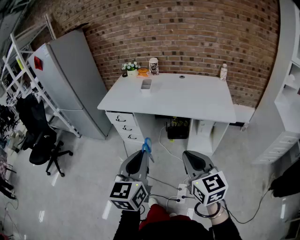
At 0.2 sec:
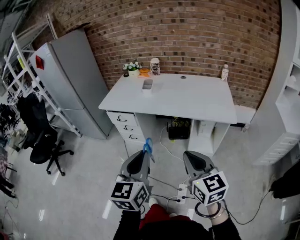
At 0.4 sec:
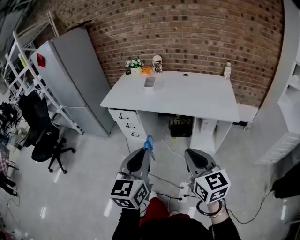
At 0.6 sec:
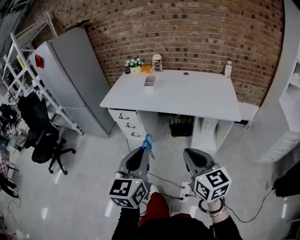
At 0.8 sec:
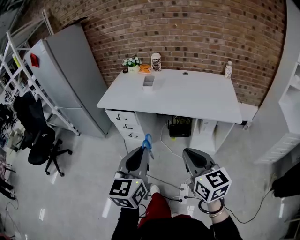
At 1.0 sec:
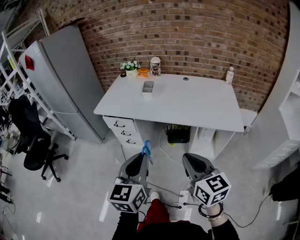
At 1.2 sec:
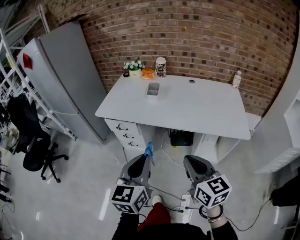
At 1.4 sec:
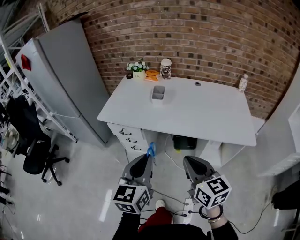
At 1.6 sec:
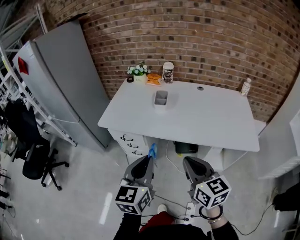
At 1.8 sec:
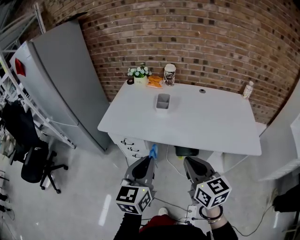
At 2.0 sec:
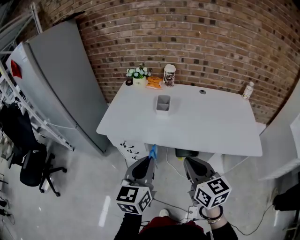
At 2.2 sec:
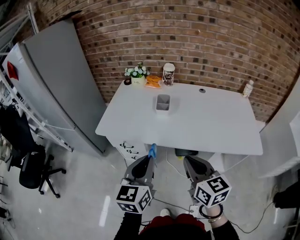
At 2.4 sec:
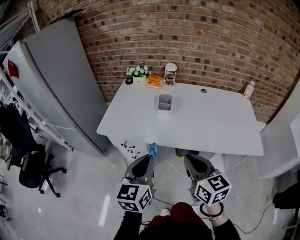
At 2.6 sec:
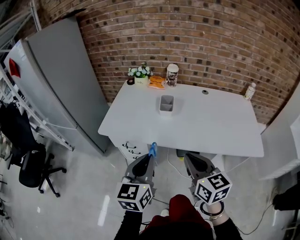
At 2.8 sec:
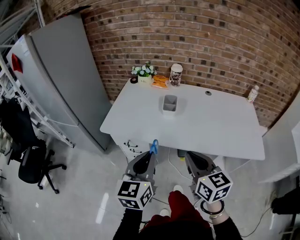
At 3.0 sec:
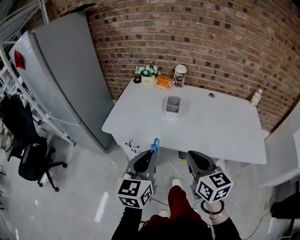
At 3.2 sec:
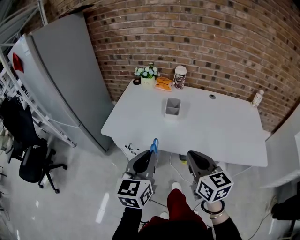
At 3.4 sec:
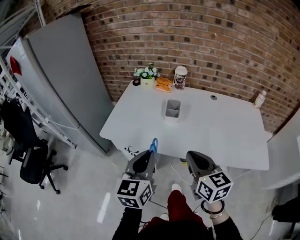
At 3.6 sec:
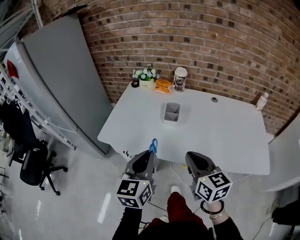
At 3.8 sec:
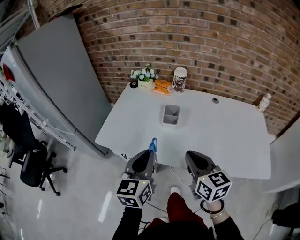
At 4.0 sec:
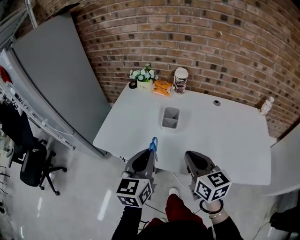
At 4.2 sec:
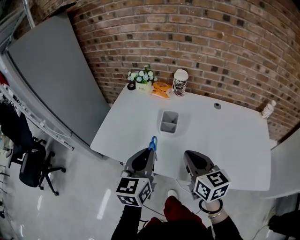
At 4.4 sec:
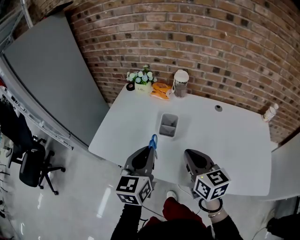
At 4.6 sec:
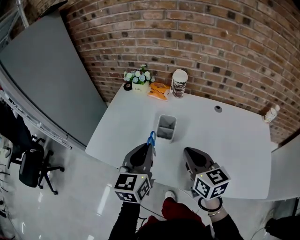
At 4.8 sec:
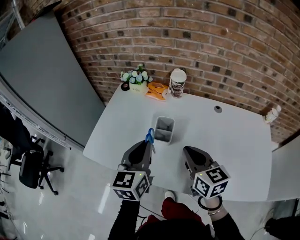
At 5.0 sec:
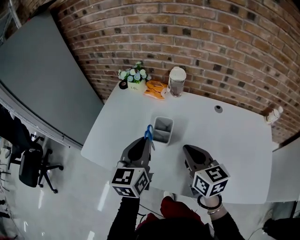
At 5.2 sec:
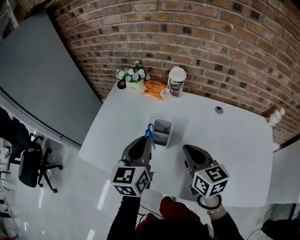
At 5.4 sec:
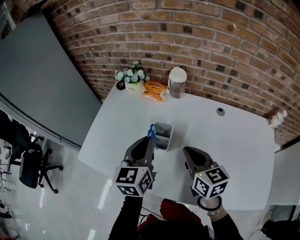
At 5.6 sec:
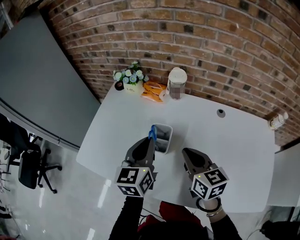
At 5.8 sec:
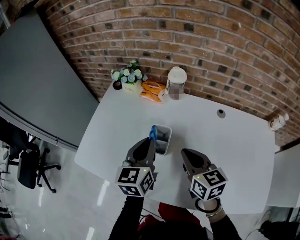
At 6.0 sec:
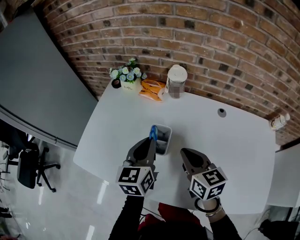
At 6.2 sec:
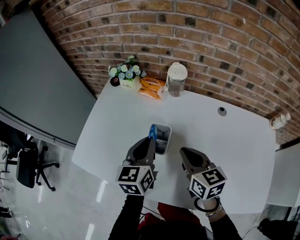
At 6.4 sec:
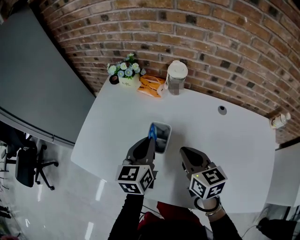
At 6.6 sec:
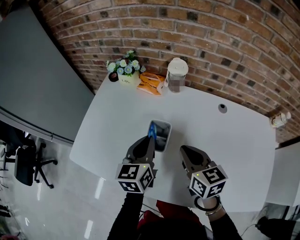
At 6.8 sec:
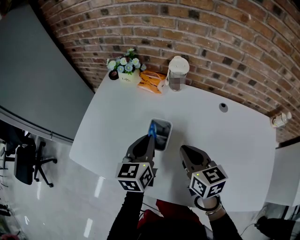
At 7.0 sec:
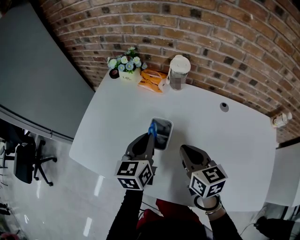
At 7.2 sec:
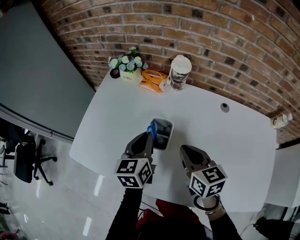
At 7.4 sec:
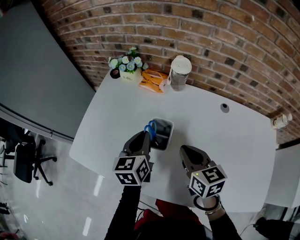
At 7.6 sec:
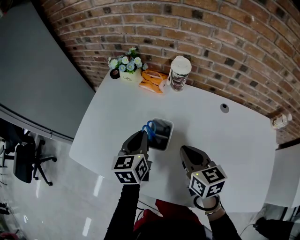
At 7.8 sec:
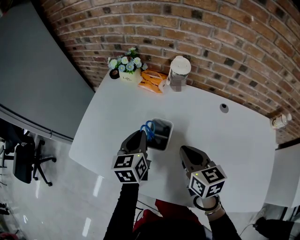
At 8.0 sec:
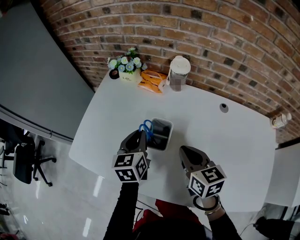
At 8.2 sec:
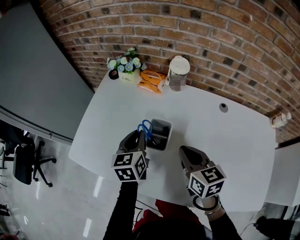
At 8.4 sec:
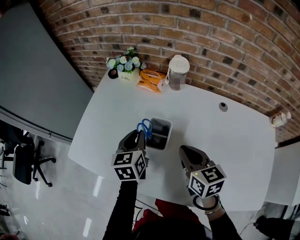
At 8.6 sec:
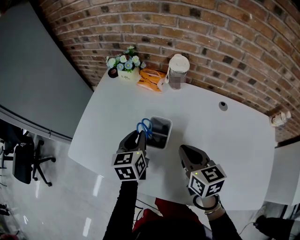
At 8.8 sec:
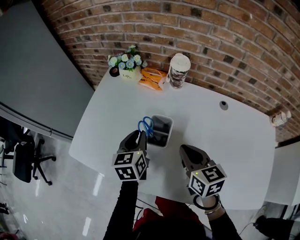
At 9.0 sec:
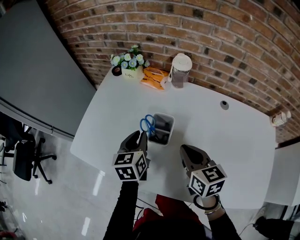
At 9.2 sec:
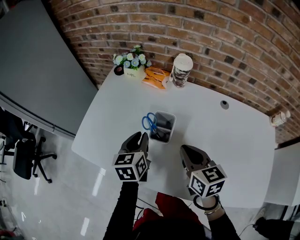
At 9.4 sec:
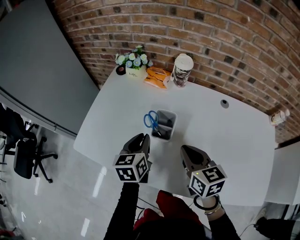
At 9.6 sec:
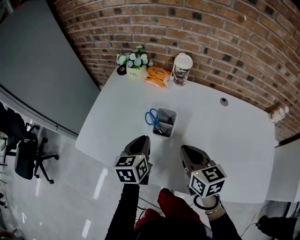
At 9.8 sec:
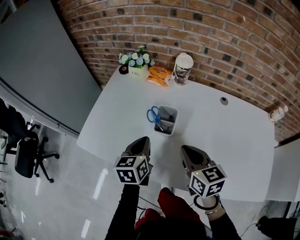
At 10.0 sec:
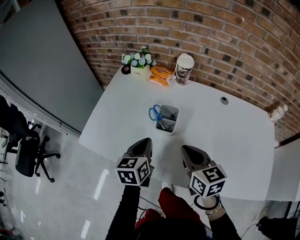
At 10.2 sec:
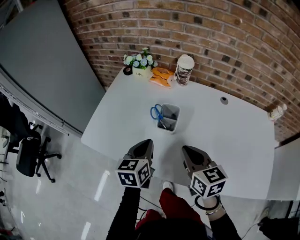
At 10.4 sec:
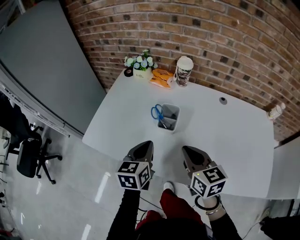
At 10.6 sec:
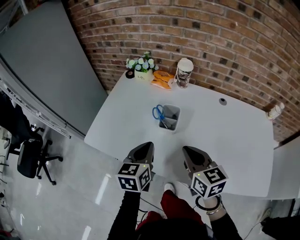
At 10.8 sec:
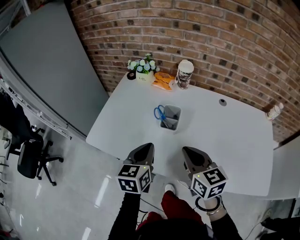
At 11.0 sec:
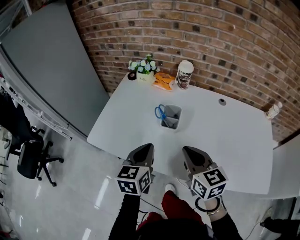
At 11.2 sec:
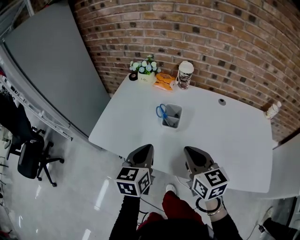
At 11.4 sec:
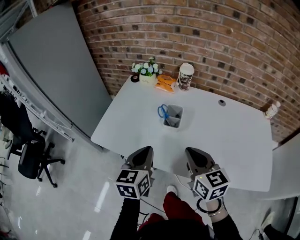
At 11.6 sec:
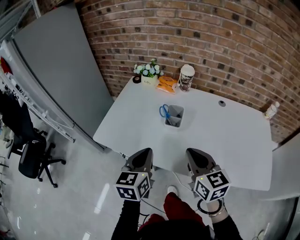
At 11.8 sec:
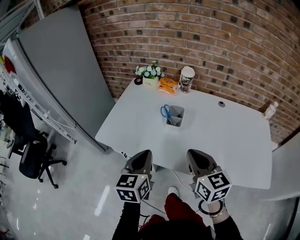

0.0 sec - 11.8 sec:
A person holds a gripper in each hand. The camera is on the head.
0.0 sec - 1.4 sec: The grippers both shift forward by some 20 cm.
1.4 sec - 3.0 sec: Both grippers move forward and to the left, some 15 cm.
3.0 sec - 4.4 sec: Both grippers travel together forward, about 20 cm.
4.4 sec - 6.0 sec: The left gripper heads forward, to the right and downward, covering roughly 20 cm, while the right gripper is displaced forward and downward by some 15 cm.
6.0 sec - 7.4 sec: The left gripper is displaced downward by approximately 5 cm.
7.4 sec - 8.8 sec: The grippers move only a little.
8.8 sec - 10.4 sec: Both grippers move backward, about 10 cm.
10.4 sec - 11.8 sec: The left gripper goes about 15 cm backward, upward and to the left. The right gripper travels backward and upward by about 10 cm.

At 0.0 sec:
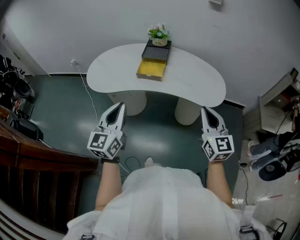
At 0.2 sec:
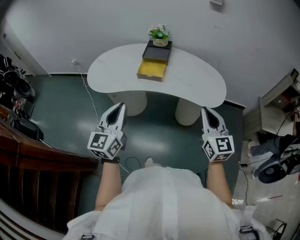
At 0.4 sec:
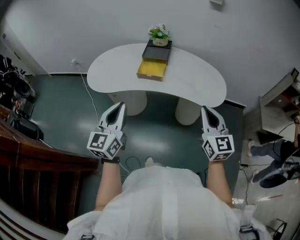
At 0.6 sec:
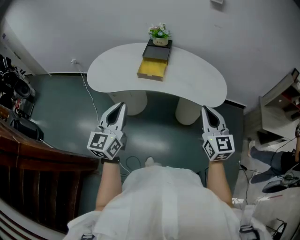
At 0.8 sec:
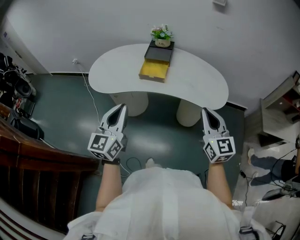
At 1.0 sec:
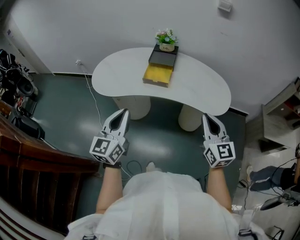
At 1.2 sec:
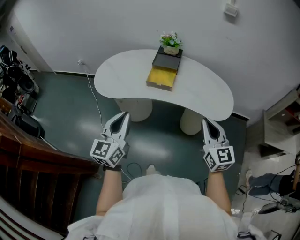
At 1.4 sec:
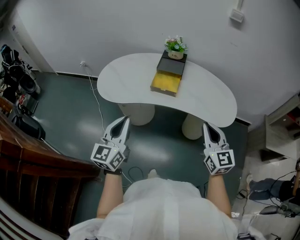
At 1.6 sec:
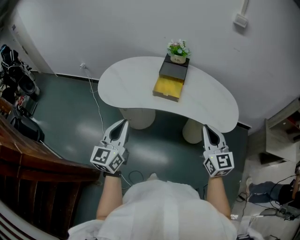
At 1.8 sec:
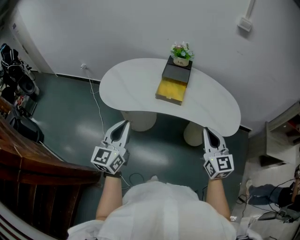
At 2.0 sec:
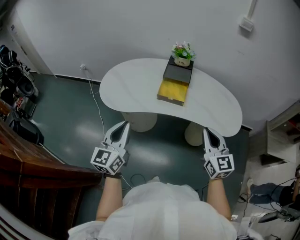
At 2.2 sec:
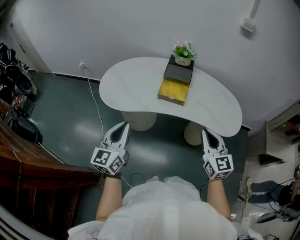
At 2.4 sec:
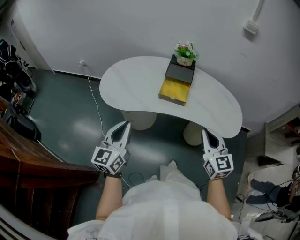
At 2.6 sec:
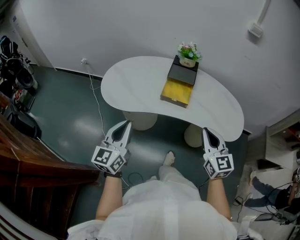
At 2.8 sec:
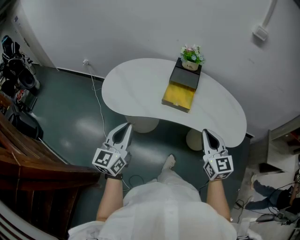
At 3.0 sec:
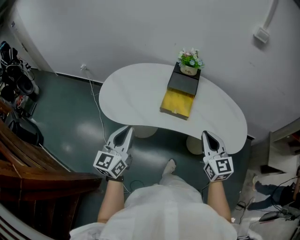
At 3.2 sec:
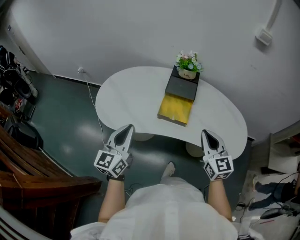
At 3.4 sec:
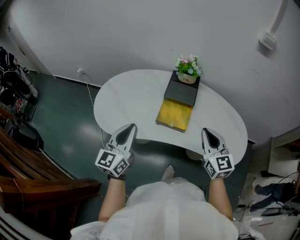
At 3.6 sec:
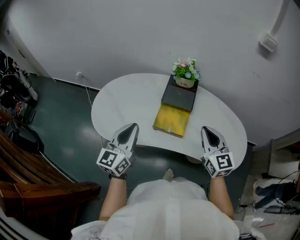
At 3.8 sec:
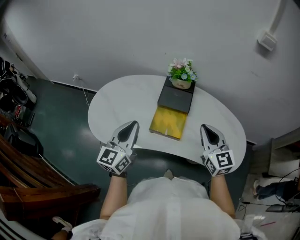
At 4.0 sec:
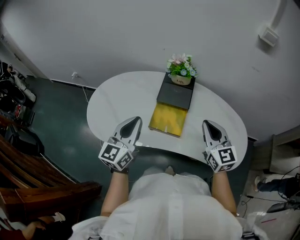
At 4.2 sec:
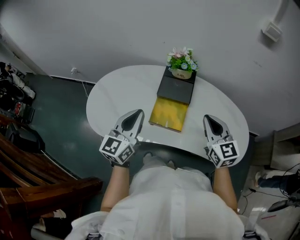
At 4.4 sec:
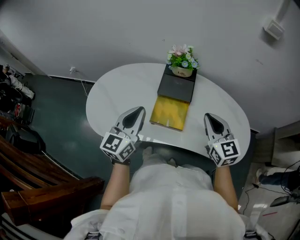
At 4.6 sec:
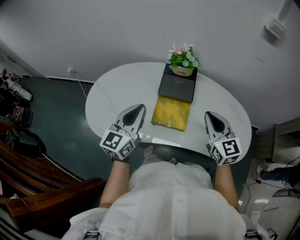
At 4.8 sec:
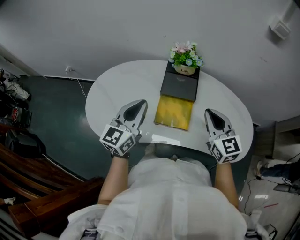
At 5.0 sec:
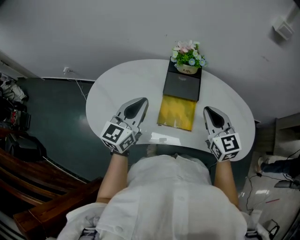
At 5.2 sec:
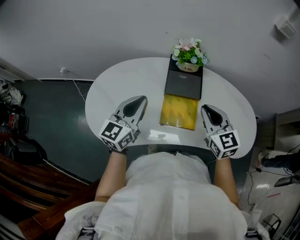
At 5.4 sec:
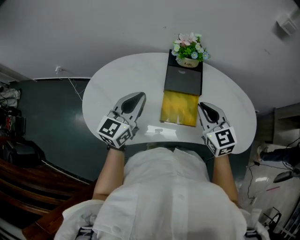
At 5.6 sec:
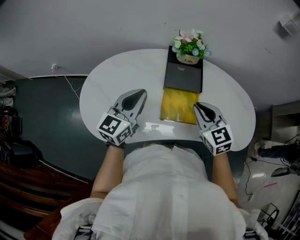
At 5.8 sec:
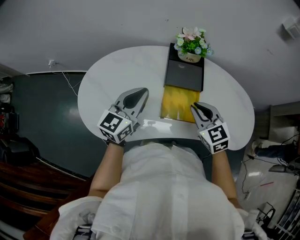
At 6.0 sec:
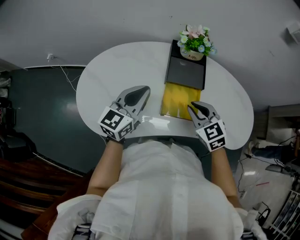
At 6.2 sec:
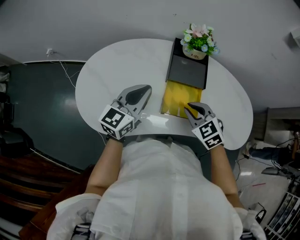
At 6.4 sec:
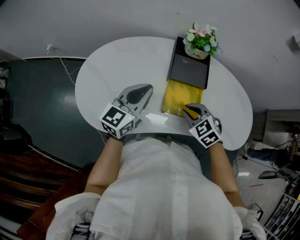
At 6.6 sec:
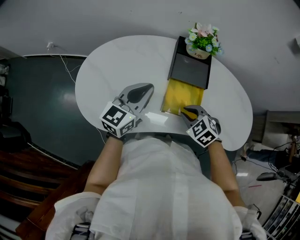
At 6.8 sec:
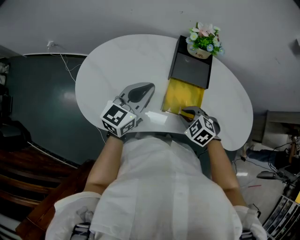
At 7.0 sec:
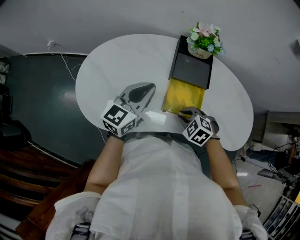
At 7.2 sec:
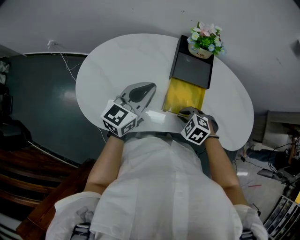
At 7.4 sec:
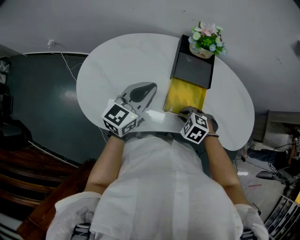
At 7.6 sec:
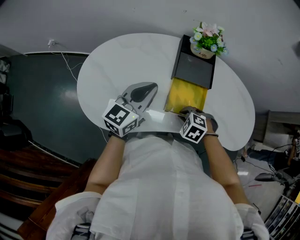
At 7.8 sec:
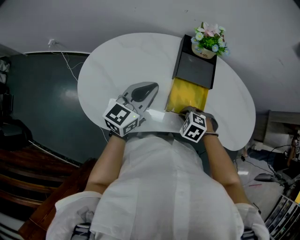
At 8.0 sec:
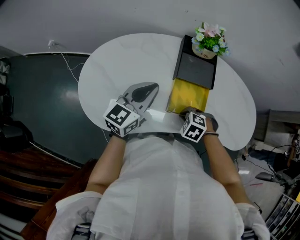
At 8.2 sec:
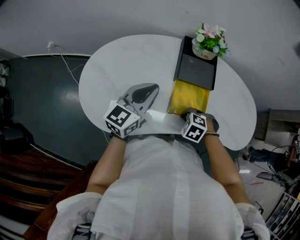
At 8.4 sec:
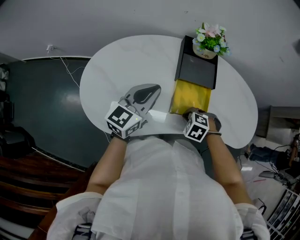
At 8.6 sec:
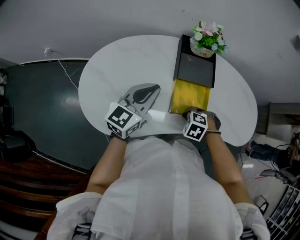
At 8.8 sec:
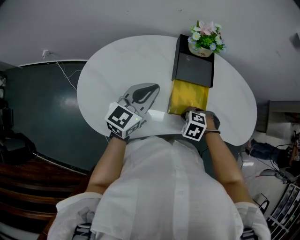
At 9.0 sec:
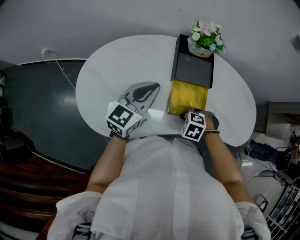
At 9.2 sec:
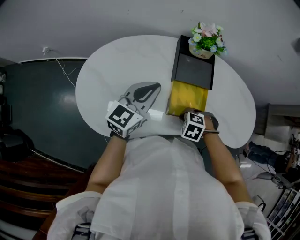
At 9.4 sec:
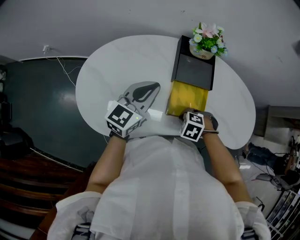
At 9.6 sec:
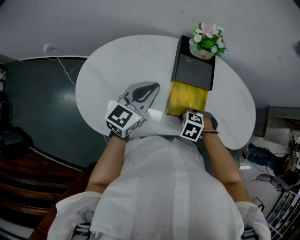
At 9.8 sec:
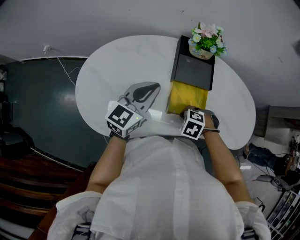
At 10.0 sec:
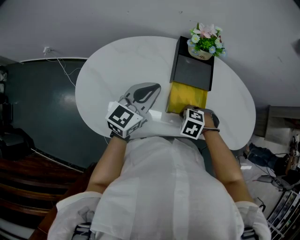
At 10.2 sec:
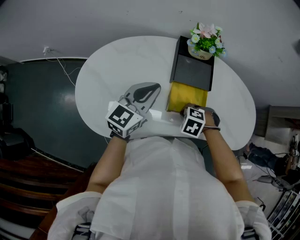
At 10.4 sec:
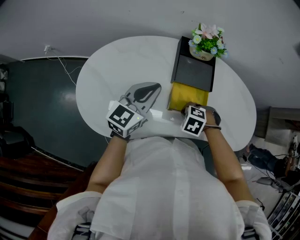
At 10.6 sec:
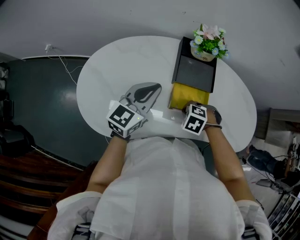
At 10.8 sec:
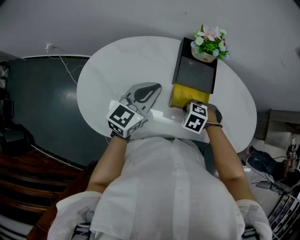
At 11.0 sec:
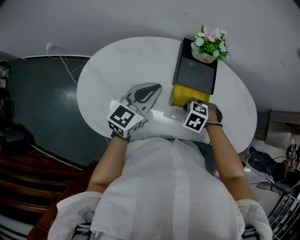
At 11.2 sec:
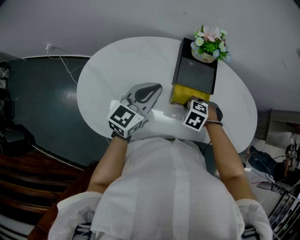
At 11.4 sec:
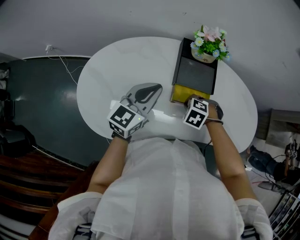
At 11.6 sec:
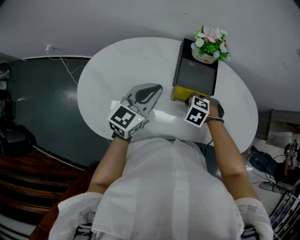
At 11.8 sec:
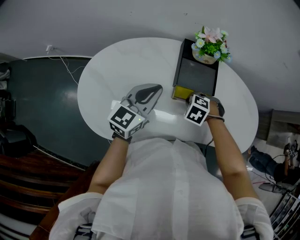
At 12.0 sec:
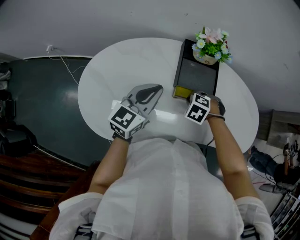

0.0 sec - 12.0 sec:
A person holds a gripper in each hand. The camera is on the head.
0.0 sec - 1.6 sec: The grippers both shift to the left and forward by about 10 cm.
1.6 sec - 3.0 sec: The grippers both shift forward by approximately 15 cm.
3.0 sec - 4.4 sec: The left gripper moves forward and to the right, some 25 cm; the right gripper moves forward, some 20 cm.
4.4 sec - 6.0 sec: The right gripper goes some 20 cm to the left and downward, and changes its angle by about 30 degrees; the left gripper travels forward, to the left and downward by roughly 15 cm.
6.0 sec - 7.6 sec: The right gripper is displaced downward by approximately 15 cm, and angles its fingers downward, by some 40 degrees.
7.6 sec - 10.4 sec: The grippers make only small movements.
10.4 sec - 12.0 sec: The right gripper ends up roughly 10 cm from where it was.
